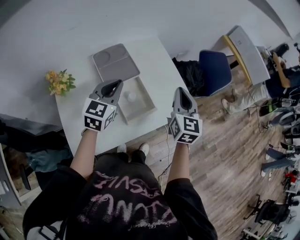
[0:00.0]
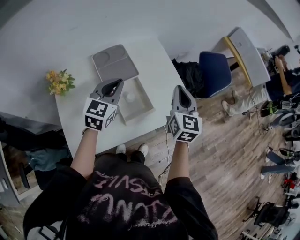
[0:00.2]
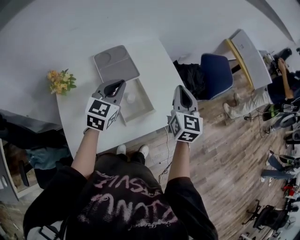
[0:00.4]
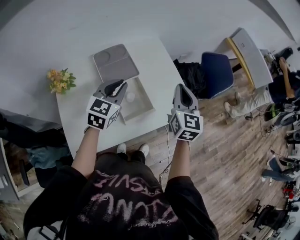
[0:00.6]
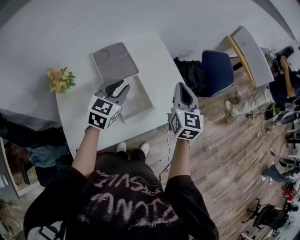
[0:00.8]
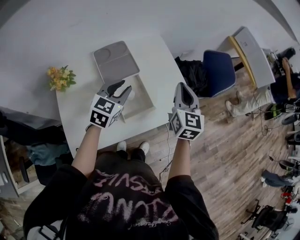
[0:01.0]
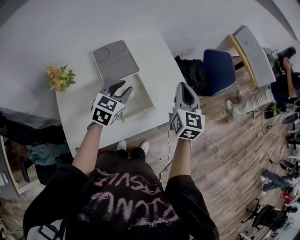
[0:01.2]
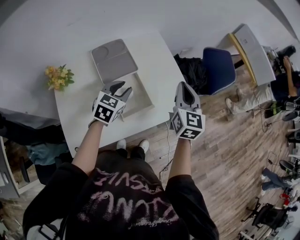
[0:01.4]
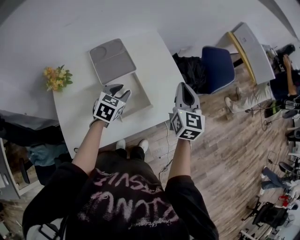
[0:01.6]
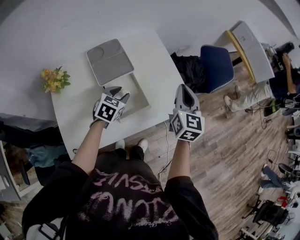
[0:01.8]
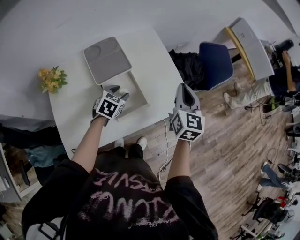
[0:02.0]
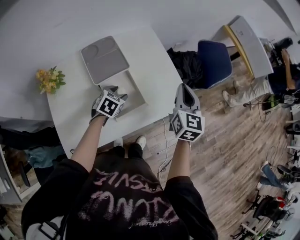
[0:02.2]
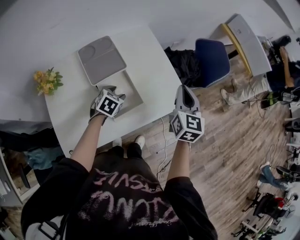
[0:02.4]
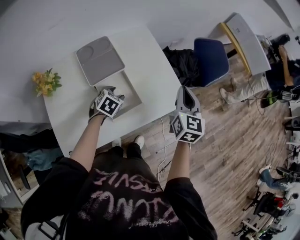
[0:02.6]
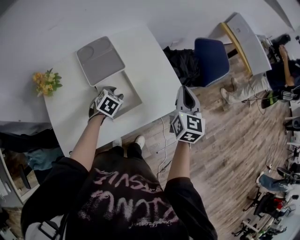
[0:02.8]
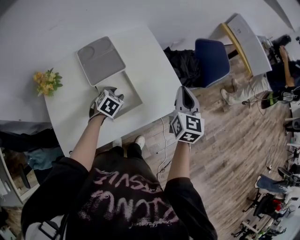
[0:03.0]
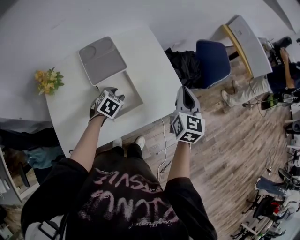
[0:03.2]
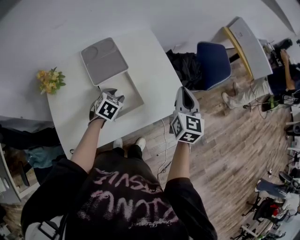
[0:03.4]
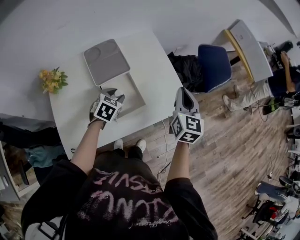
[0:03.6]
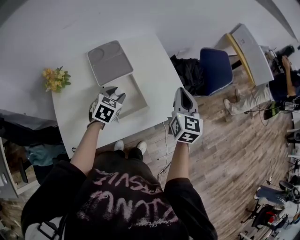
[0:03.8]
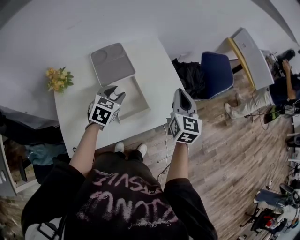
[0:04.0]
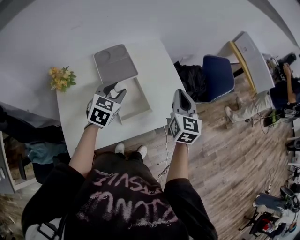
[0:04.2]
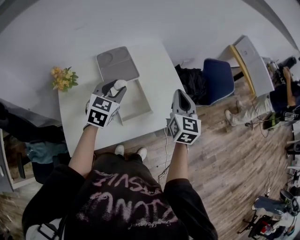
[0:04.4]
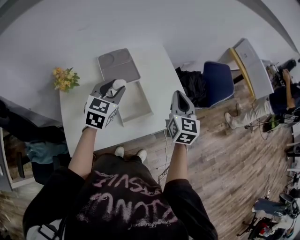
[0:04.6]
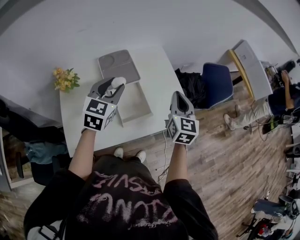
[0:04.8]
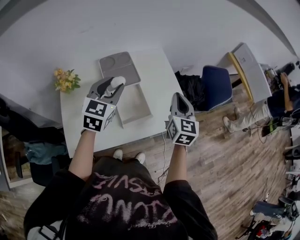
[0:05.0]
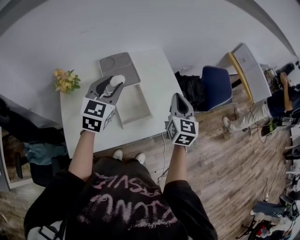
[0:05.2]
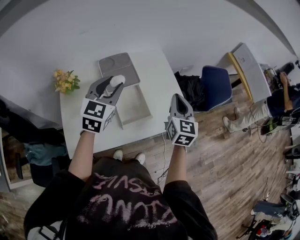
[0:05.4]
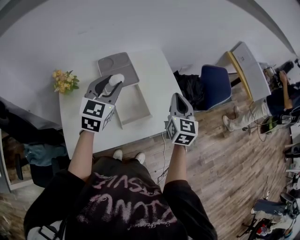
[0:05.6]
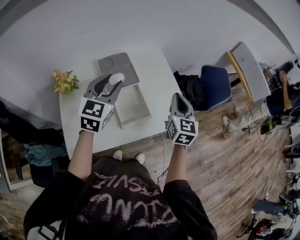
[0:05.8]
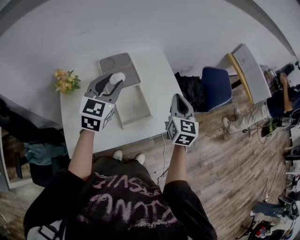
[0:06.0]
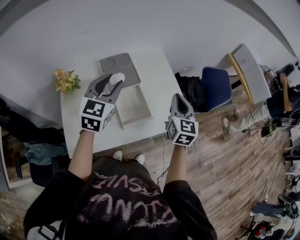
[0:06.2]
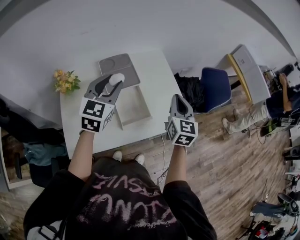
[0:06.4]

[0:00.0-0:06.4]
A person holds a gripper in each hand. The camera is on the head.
0:00.0 to 0:01.6: The left gripper goes approximately 10 cm downward, rotates roughly 20 degrees, and opens up.
0:01.6 to 0:03.2: The left gripper travels downward by approximately 10 cm; the right gripper ends up roughly 5 cm from where it was.
0:03.2 to 0:04.8: The right gripper is displaced to the left by some 5 cm; the left gripper travels upward by some 25 cm, and angles its fingers upward, by some 30 degrees.
0:04.8 to 0:06.4: The grippers make only small movements.

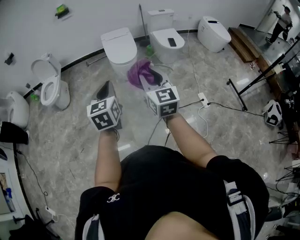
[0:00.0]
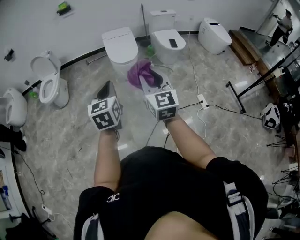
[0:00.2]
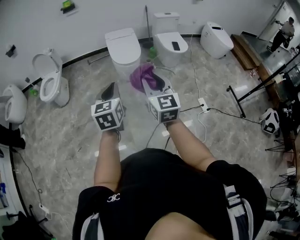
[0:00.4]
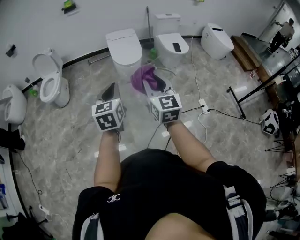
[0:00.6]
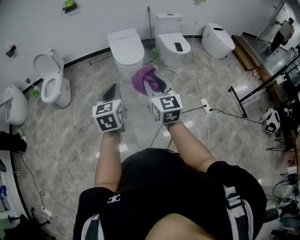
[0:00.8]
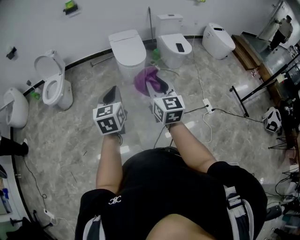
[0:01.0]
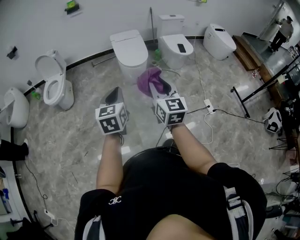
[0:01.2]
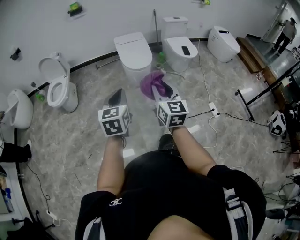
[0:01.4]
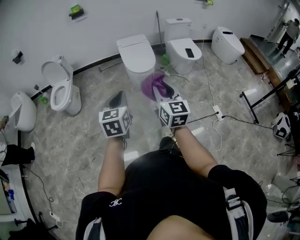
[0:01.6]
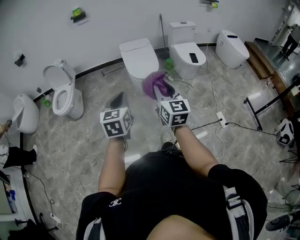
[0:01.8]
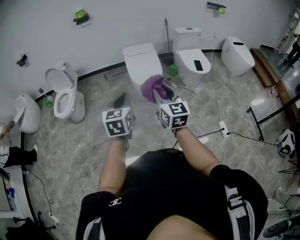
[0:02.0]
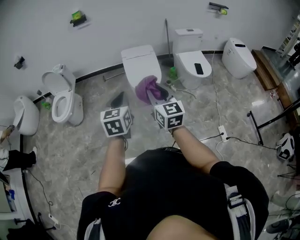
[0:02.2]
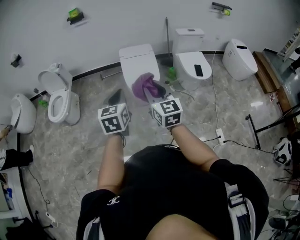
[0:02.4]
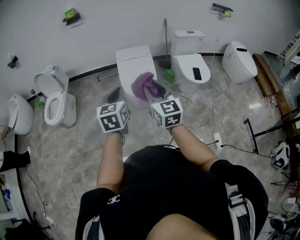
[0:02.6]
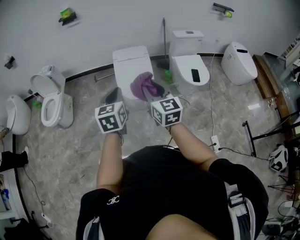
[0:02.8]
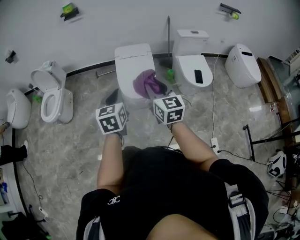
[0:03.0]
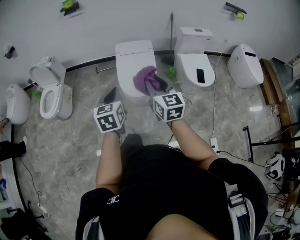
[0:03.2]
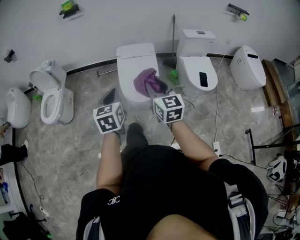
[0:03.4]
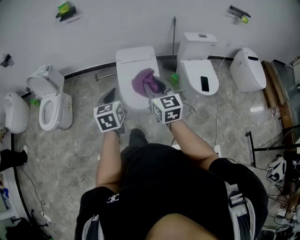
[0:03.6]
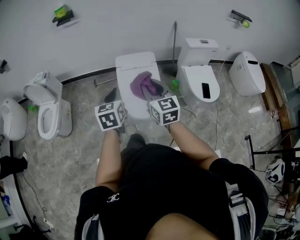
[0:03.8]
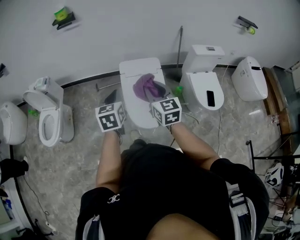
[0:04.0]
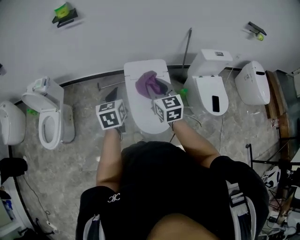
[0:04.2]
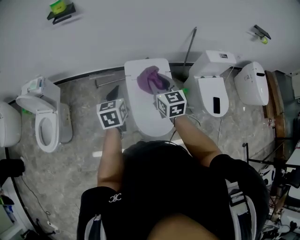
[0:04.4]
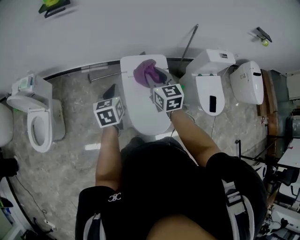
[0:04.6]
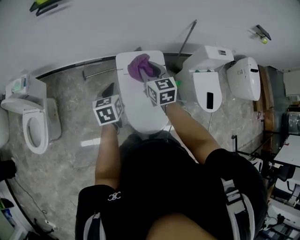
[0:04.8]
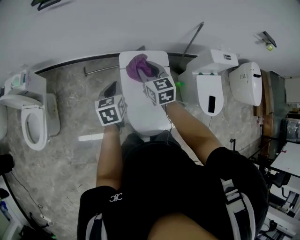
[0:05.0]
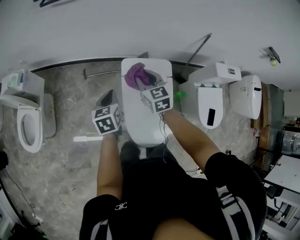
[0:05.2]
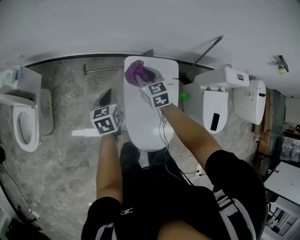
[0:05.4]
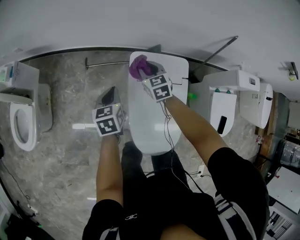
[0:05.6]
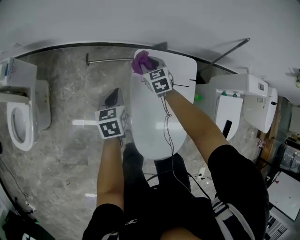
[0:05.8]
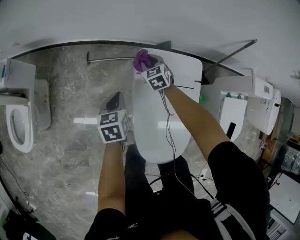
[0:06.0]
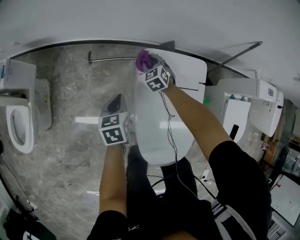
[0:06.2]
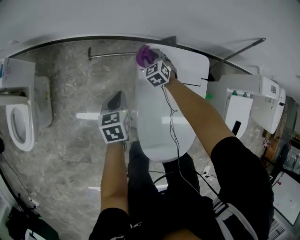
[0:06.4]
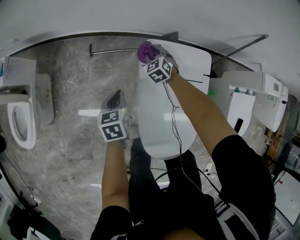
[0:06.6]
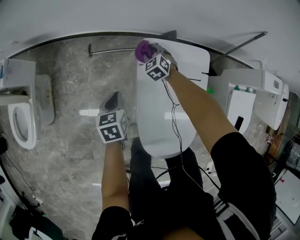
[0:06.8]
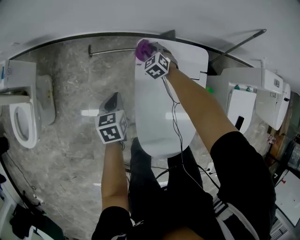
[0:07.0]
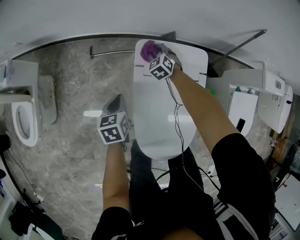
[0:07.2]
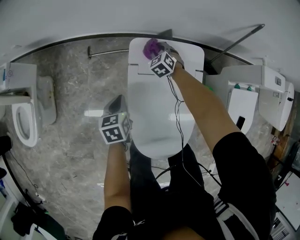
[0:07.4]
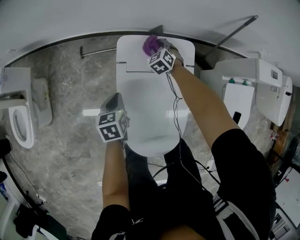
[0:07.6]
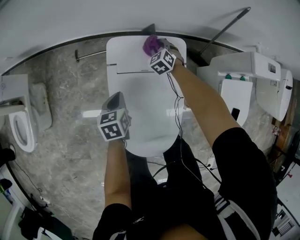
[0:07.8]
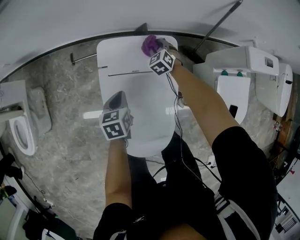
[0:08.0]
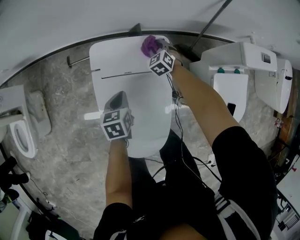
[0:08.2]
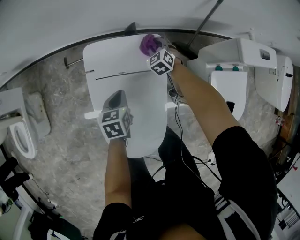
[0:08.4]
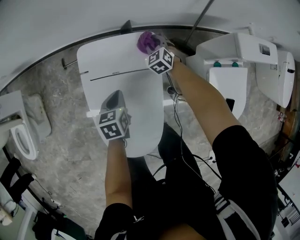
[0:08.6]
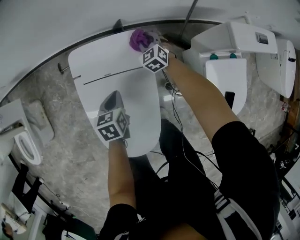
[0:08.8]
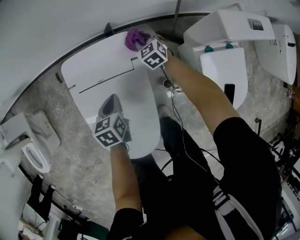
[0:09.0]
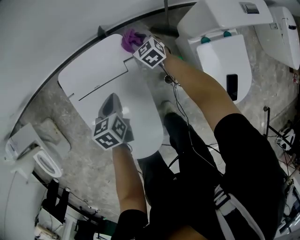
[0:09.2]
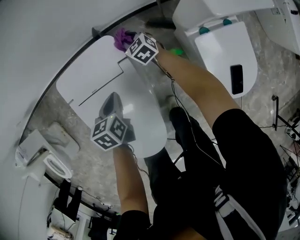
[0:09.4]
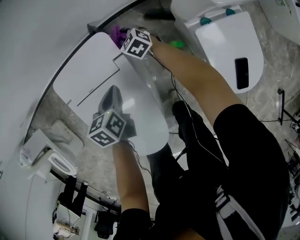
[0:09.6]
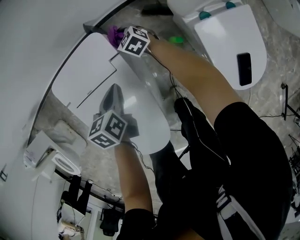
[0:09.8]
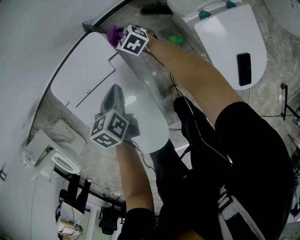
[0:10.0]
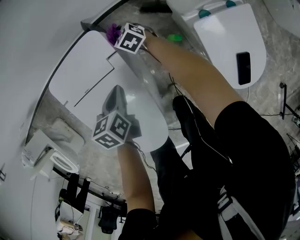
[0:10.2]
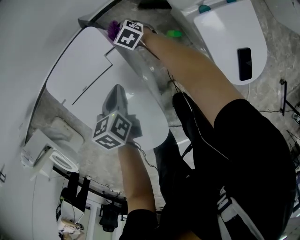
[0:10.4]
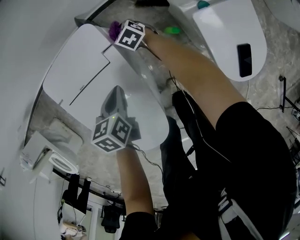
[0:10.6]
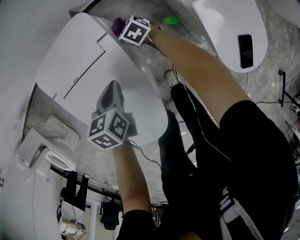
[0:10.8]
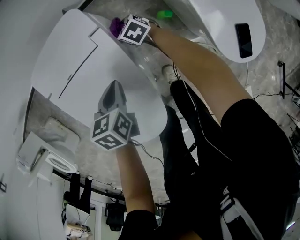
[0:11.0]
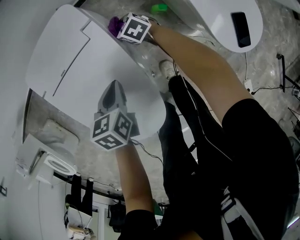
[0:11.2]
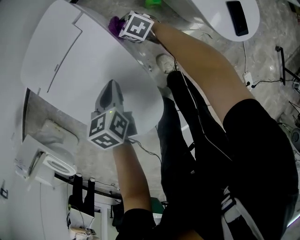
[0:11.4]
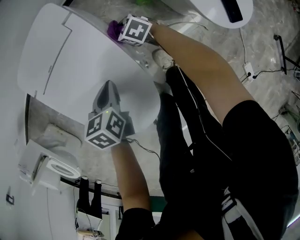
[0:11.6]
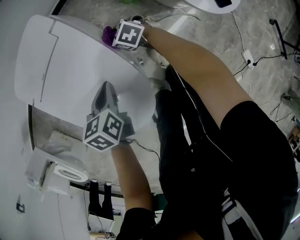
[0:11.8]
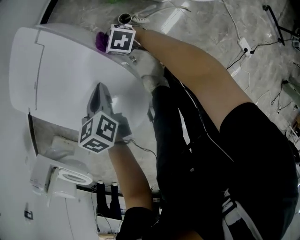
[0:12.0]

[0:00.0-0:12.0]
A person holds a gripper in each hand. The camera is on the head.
0:00.0 to 0:01.6: The right gripper shifts about 15 cm forward and to the left, while the left gripper moves to the left and forward, approximately 15 cm.
0:01.6 to 0:03.0: Both grippers are carried forward, some 40 cm.
0:03.0 to 0:04.4: Both grippers are carried forward, approximately 50 cm.
0:04.4 to 0:06.0: The grippers both shift downward and forward by about 50 cm. The right gripper turns by roughly 40 degrees. The left gripper changes its angle by roughly 20 degrees.
0:06.0 to 0:07.6: The right gripper travels to the right by roughly 15 cm. Meanwhile the left gripper shifts roughly 10 cm to the right.
0:07.6 to 0:09.0: Both grippers move to the right, some 25 cm.
0:09.0 to 0:10.4: The left gripper shifts some 10 cm to the right and downward. The right gripper moves downward, about 15 cm, and swivels approximately 20 degrees.
0:10.4 to 0:12.0: The right gripper travels backward by some 35 cm. Meanwhile the left gripper moves backward, some 20 cm.

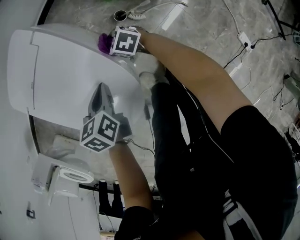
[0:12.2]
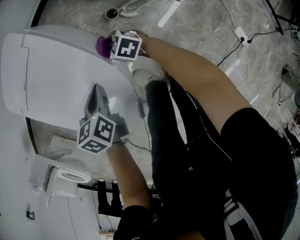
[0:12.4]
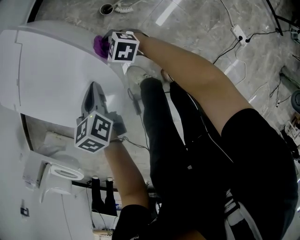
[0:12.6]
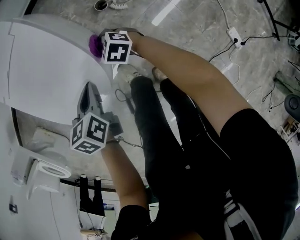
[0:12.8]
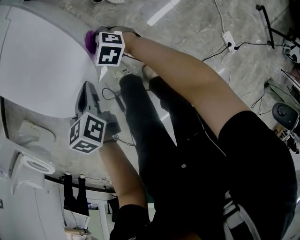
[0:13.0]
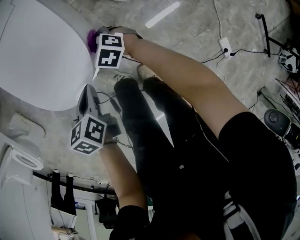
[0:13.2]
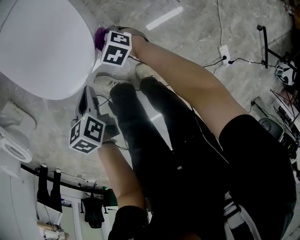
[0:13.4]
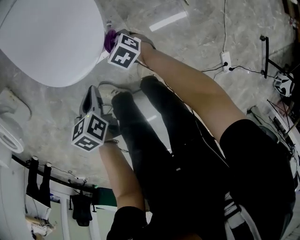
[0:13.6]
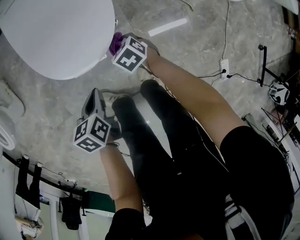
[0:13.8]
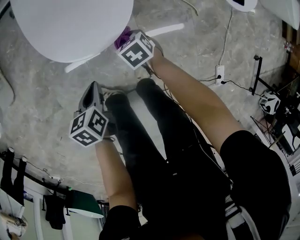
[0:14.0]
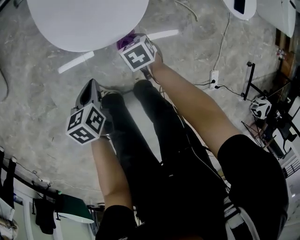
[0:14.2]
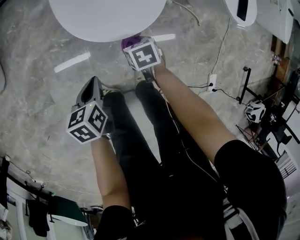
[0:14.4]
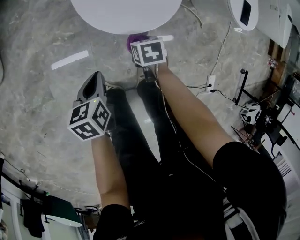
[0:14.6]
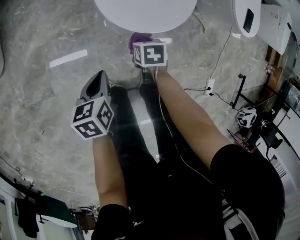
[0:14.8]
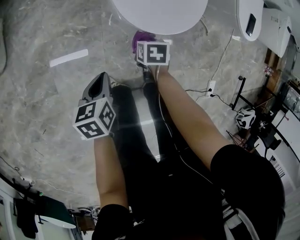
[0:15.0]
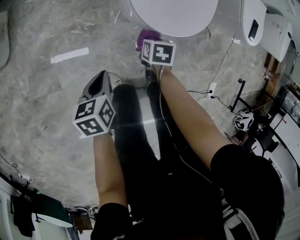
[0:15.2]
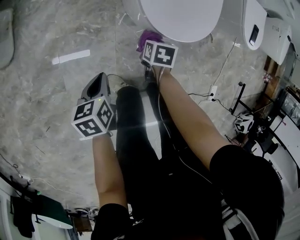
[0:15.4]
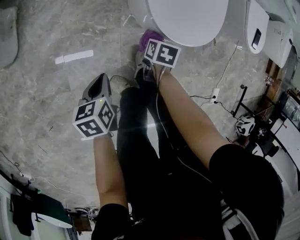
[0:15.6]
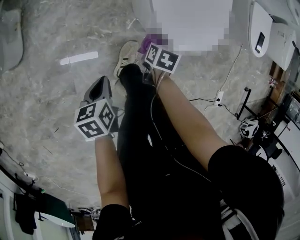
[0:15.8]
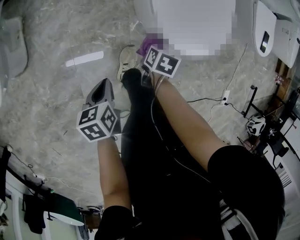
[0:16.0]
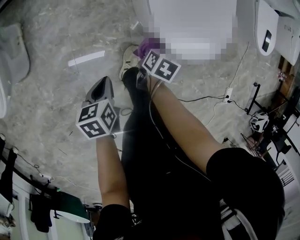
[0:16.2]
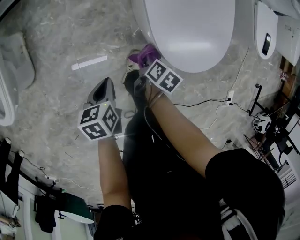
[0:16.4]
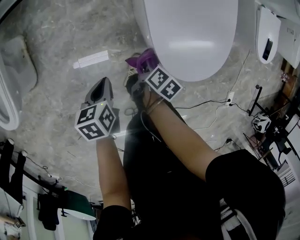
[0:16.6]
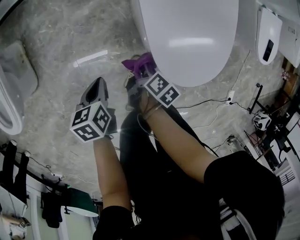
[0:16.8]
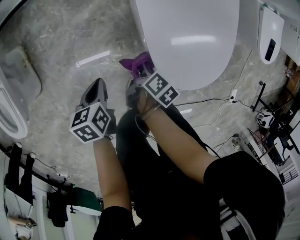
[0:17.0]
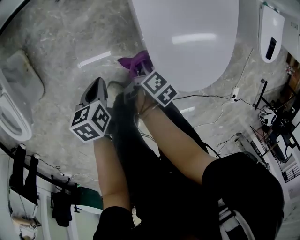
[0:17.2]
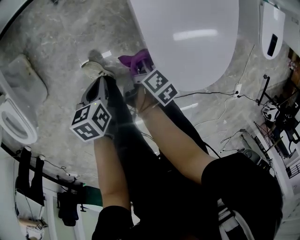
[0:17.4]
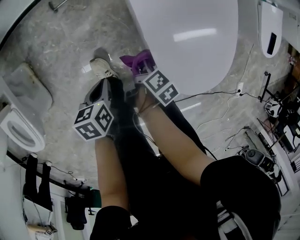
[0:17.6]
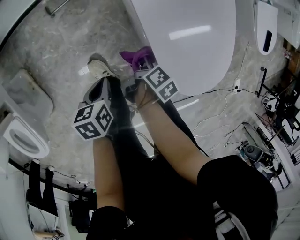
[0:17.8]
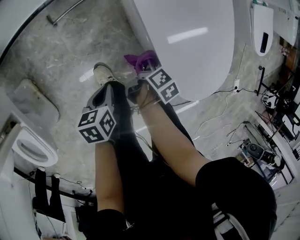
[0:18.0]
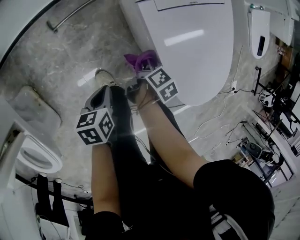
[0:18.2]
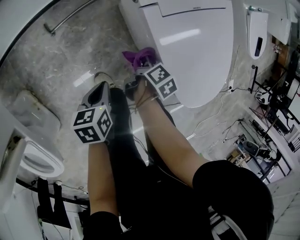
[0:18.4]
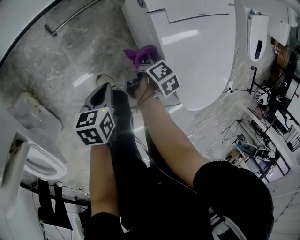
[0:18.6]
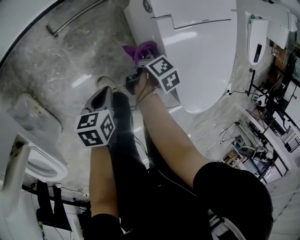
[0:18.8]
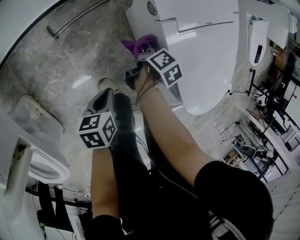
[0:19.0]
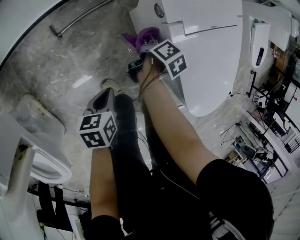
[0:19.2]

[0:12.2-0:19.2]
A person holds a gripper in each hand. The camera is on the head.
0:12.2 to 0:13.6: The right gripper is displaced backward by roughly 25 cm, while the left gripper is displaced backward and to the left by some 30 cm, and changes its angle by some 30 degrees.
0:13.6 to 0:15.0: The grippers both shift to the left by approximately 20 cm. The right gripper turns by some 30 degrees.
0:15.0 to 0:16.4: Both grippers move to the left and forward, roughly 20 cm. The right gripper twists approximately 40 degrees clockwise, seen from behind.
0:16.4 to 0:17.8: Both grippers travel together forward and to the left, roughly 20 cm. The right gripper changes its angle by about 30 degrees.
0:17.8 to 0:19.2: The left gripper travels to the left by about 15 cm. Meanwhile the right gripper moves to the left and forward, approximately 25 cm.
